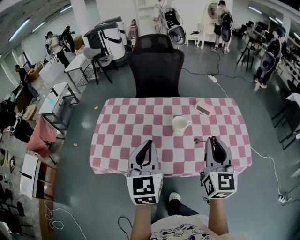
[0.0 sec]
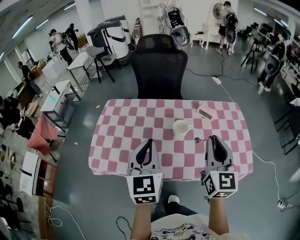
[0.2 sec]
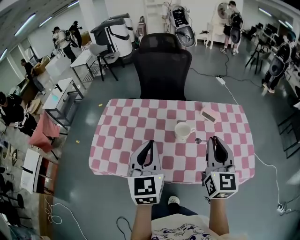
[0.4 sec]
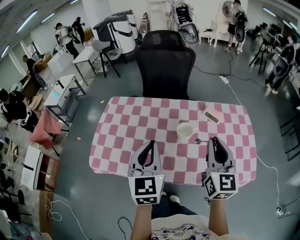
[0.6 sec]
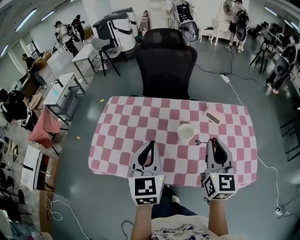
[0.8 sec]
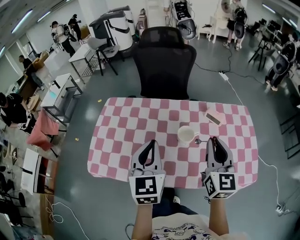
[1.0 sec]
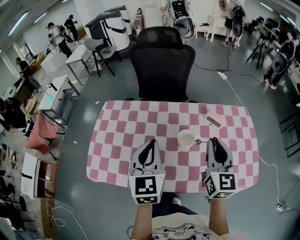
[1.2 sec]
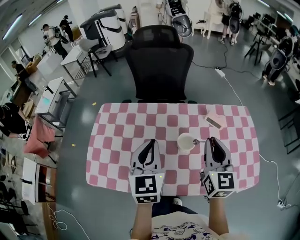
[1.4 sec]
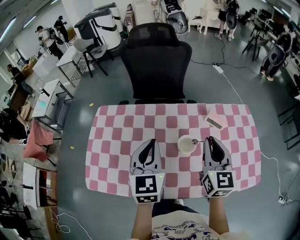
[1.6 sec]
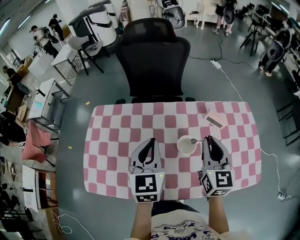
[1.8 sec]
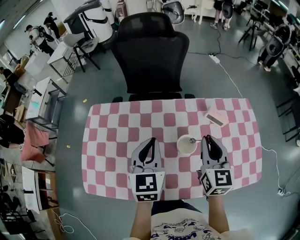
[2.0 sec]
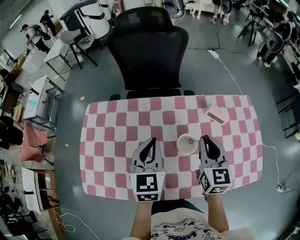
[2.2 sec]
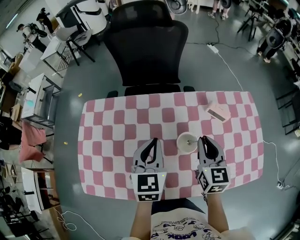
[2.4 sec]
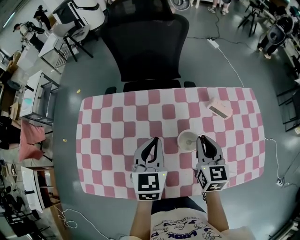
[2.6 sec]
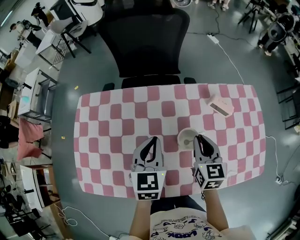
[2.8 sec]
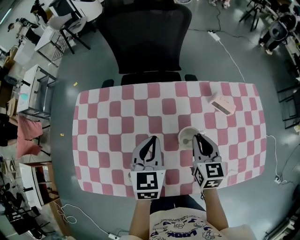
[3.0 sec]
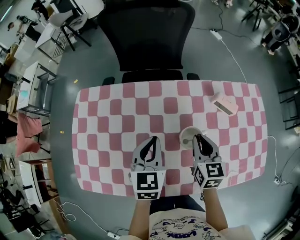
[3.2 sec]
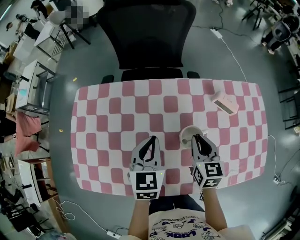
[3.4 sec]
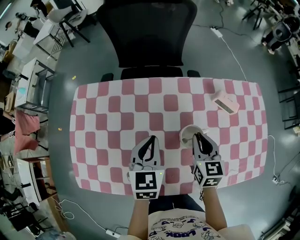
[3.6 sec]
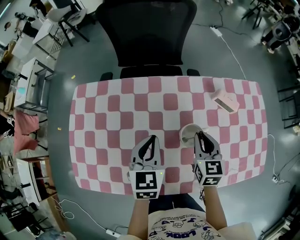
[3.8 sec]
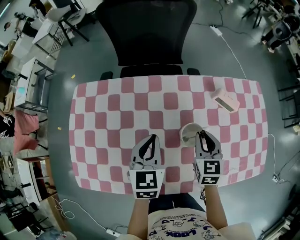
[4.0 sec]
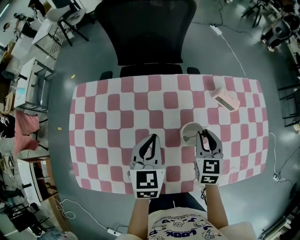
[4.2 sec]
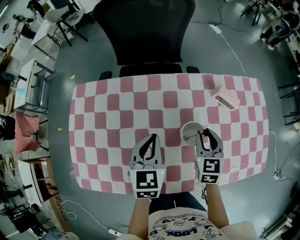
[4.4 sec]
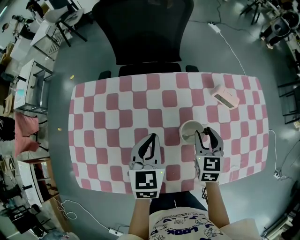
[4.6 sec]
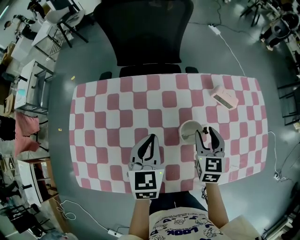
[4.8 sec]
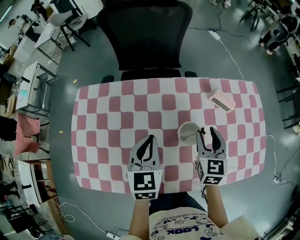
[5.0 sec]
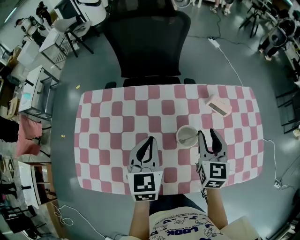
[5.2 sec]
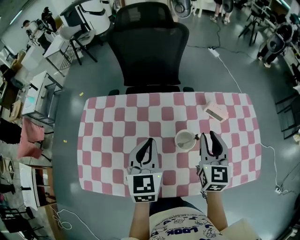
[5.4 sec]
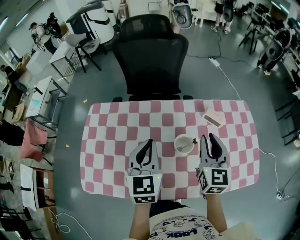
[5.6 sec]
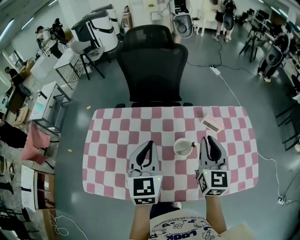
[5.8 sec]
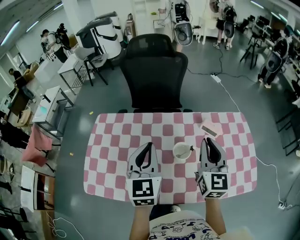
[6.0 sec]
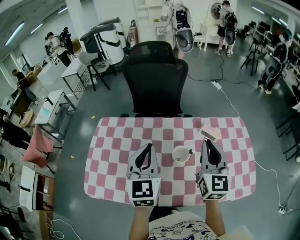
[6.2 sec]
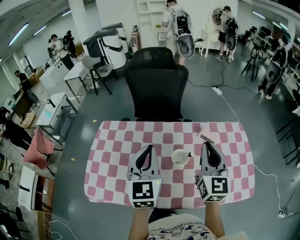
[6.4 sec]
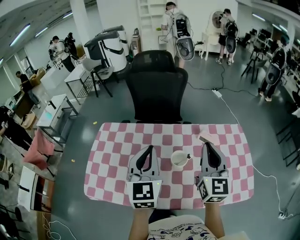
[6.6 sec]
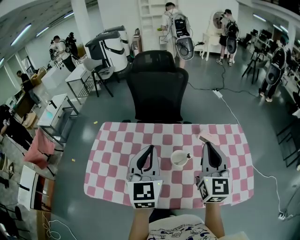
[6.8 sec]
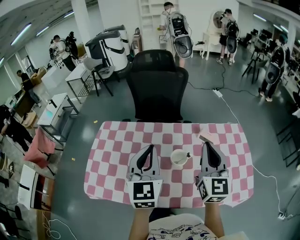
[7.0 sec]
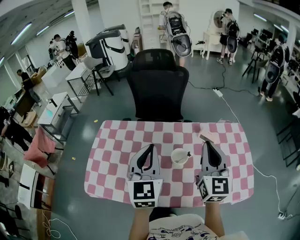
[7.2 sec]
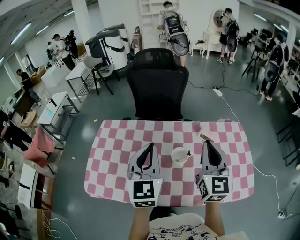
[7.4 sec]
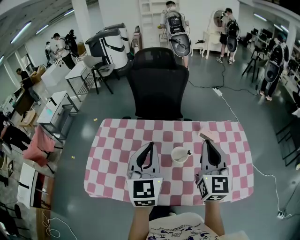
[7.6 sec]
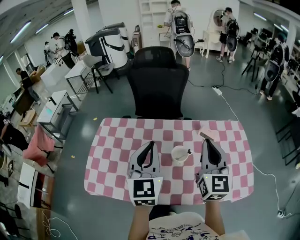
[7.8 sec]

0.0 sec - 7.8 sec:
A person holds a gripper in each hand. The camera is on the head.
0.0 sec - 1.6 sec: The grippers both shift forward by some 20 cm.
1.6 sec - 3.2 sec: The right gripper is displaced downward by roughly 20 cm, and turns by about 20 degrees, while the left gripper goes some 15 cm downward and forward.
3.2 sec - 4.6 sec: The right gripper opens.
4.6 sec - 6.2 sec: Both grippers move upward, approximately 25 cm. The left gripper swivels about 30 degrees. Meanwhile the right gripper angles its fingers upward, by about 30 degrees, and closes up.
6.2 sec - 7.8 sec: The grippers move only a little.

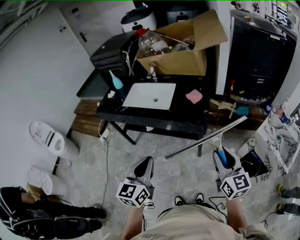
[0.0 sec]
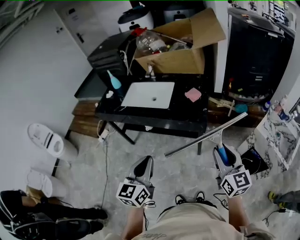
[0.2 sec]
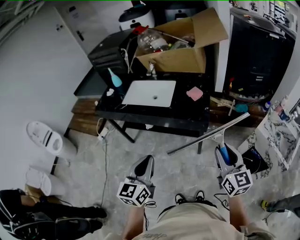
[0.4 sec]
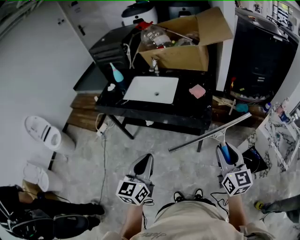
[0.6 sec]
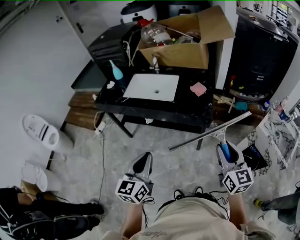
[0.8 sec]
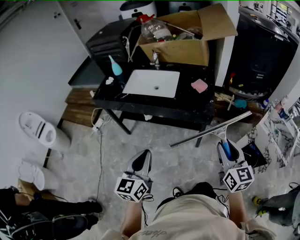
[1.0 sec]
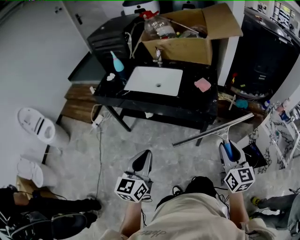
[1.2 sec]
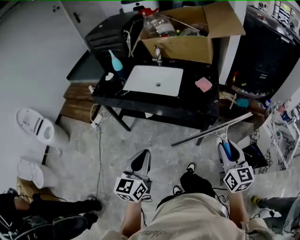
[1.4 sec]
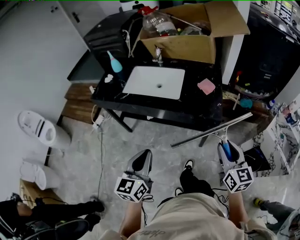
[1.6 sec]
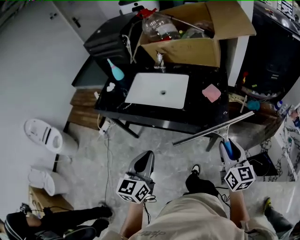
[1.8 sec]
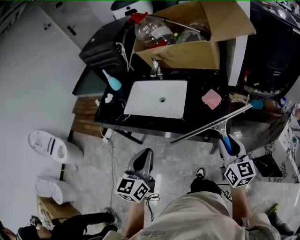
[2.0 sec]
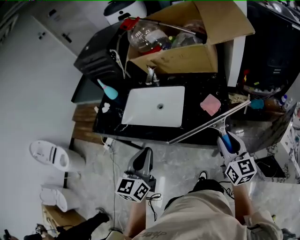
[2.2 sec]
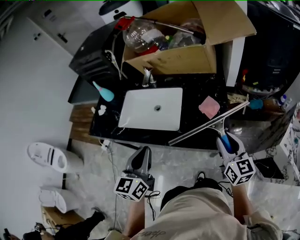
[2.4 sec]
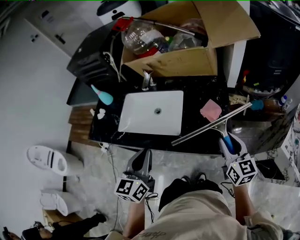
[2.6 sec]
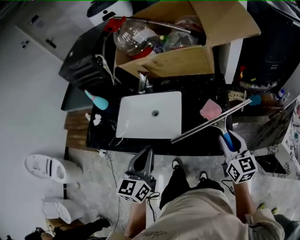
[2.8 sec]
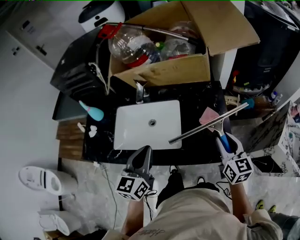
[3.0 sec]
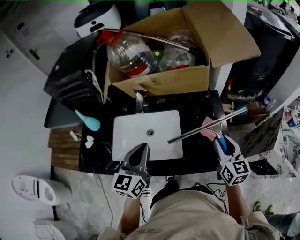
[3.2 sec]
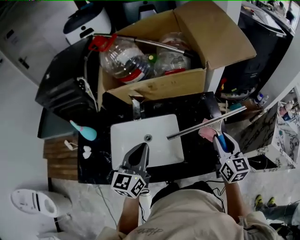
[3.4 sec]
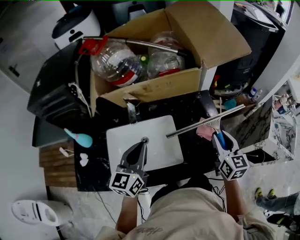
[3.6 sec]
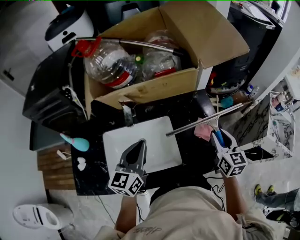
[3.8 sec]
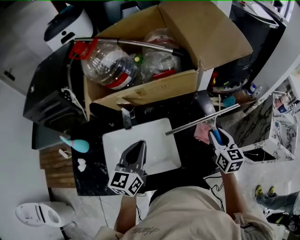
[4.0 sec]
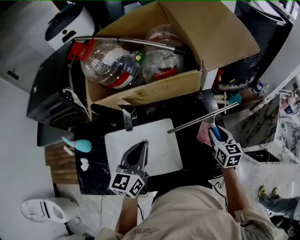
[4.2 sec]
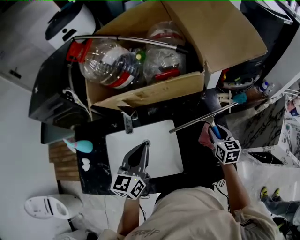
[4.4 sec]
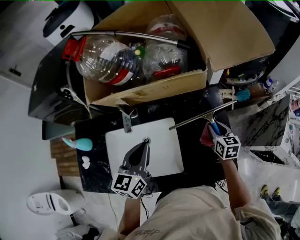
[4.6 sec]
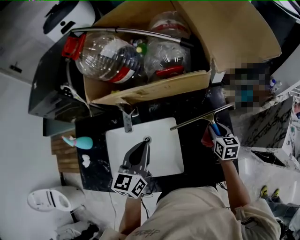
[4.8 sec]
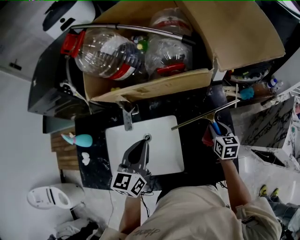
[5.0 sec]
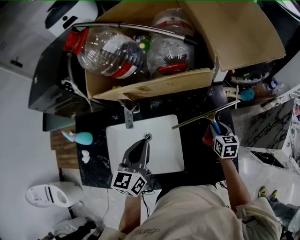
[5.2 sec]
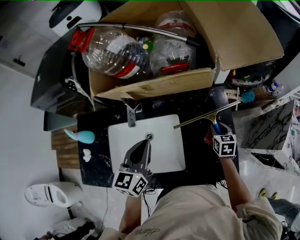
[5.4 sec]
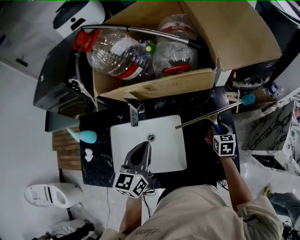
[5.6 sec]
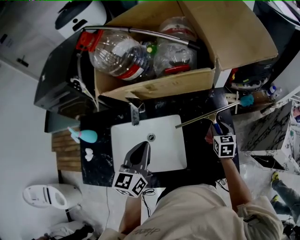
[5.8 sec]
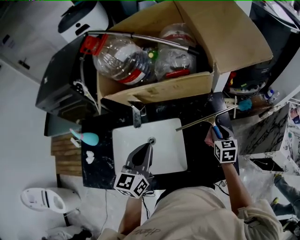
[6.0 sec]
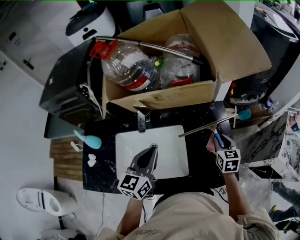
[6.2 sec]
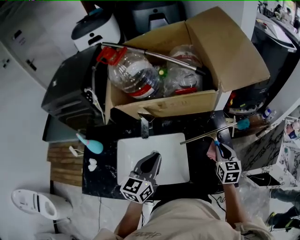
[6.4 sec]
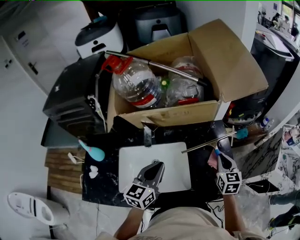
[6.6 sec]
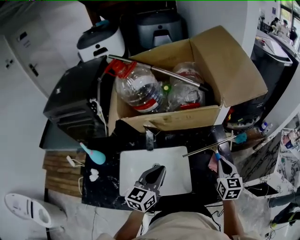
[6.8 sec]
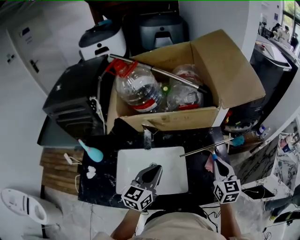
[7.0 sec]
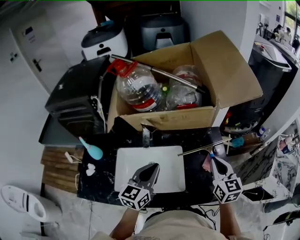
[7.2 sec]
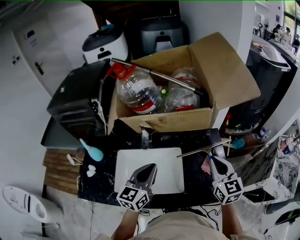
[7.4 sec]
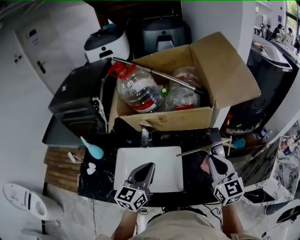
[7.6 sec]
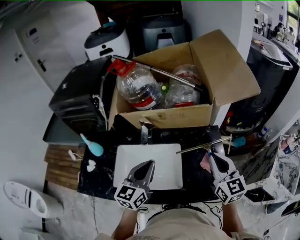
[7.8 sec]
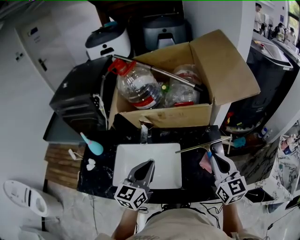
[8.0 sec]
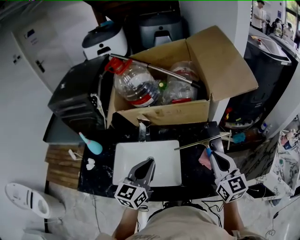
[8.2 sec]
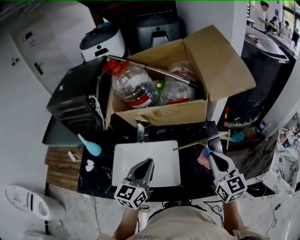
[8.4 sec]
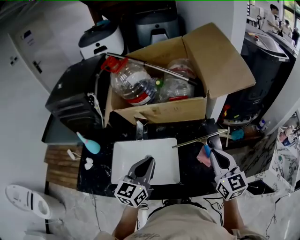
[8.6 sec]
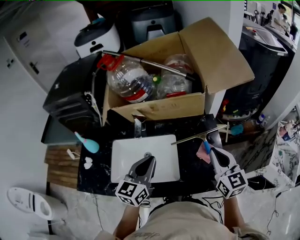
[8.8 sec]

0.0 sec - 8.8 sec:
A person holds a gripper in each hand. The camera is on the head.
0.0 sec - 1.4 sec: Both grippers move to the left, approximately 10 cm.
1.4 sec - 3.0 sec: Both grippers move forward, some 35 cm.
3.0 sec - 4.4 sec: The left gripper shifts approximately 15 cm forward. Meanwhile the right gripper heads forward and downward, covering approximately 20 cm.
5.8 sec - 7.4 sec: The right gripper moves upward and backward, roughly 25 cm, changes its angle by roughly 30 degrees, and closes.
7.4 sec - 8.8 sec: There are only small adjustments of the grippers.

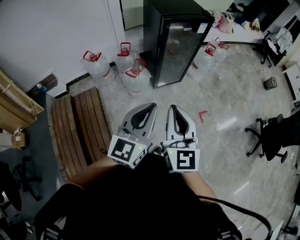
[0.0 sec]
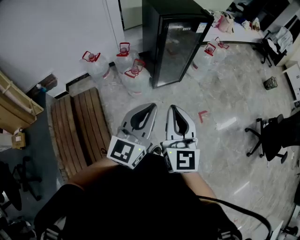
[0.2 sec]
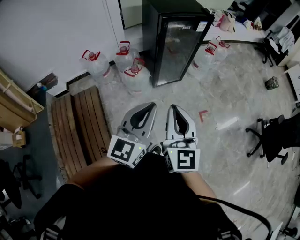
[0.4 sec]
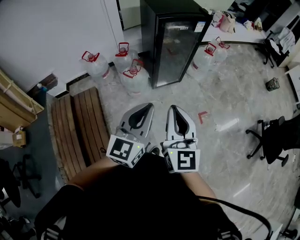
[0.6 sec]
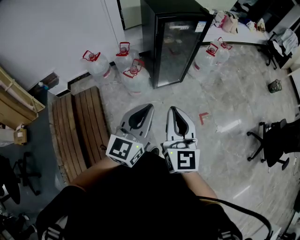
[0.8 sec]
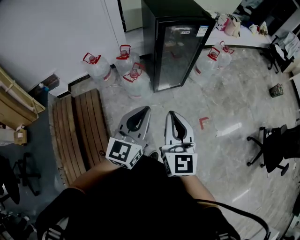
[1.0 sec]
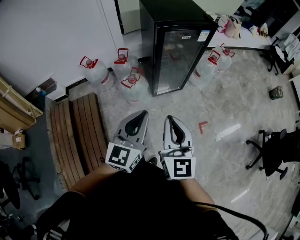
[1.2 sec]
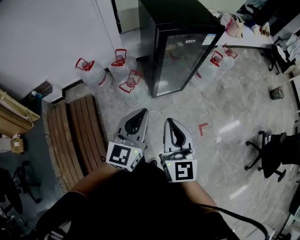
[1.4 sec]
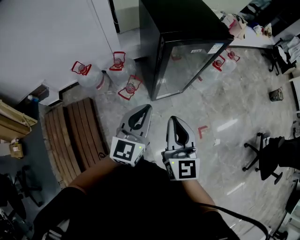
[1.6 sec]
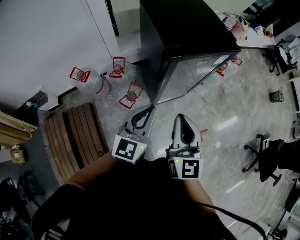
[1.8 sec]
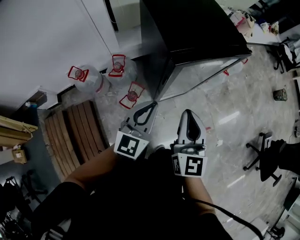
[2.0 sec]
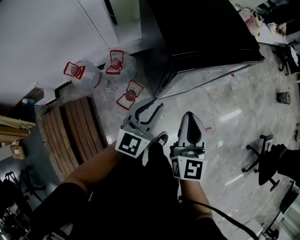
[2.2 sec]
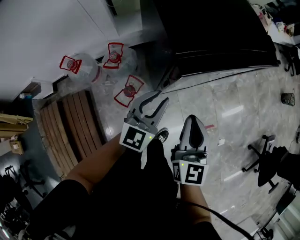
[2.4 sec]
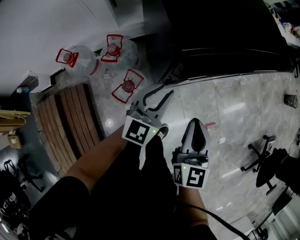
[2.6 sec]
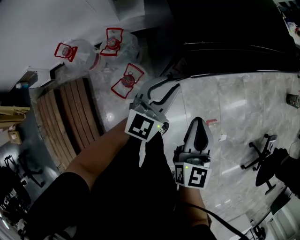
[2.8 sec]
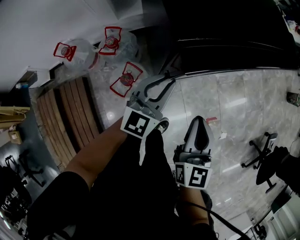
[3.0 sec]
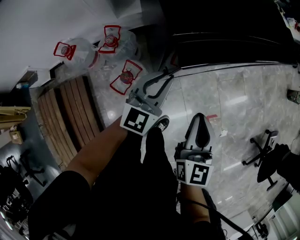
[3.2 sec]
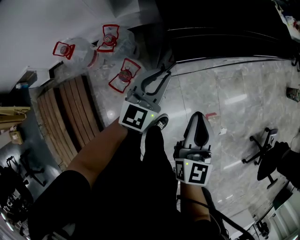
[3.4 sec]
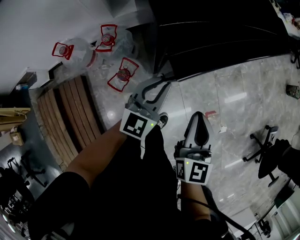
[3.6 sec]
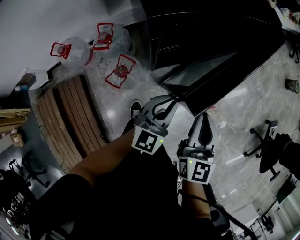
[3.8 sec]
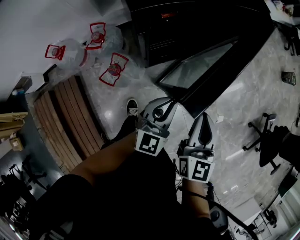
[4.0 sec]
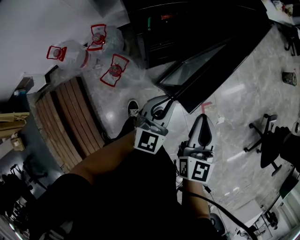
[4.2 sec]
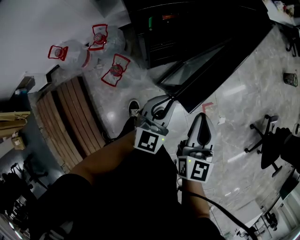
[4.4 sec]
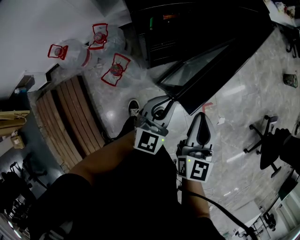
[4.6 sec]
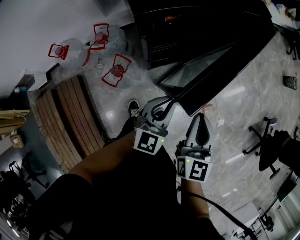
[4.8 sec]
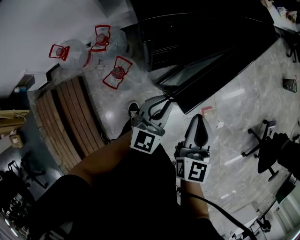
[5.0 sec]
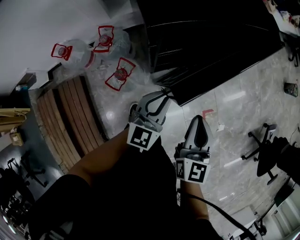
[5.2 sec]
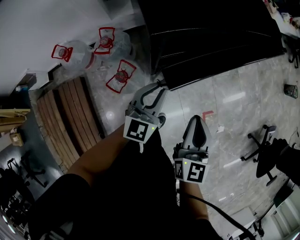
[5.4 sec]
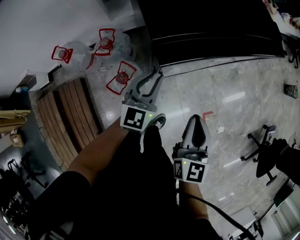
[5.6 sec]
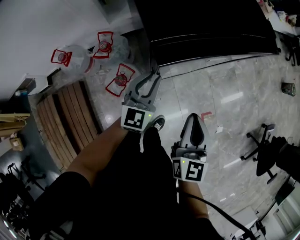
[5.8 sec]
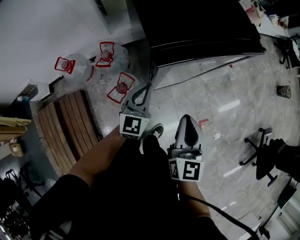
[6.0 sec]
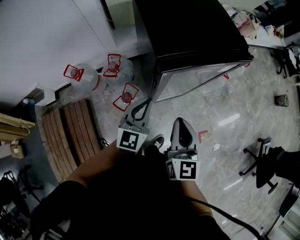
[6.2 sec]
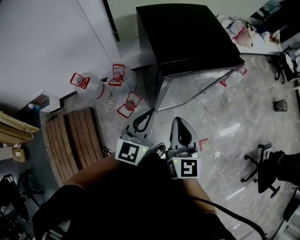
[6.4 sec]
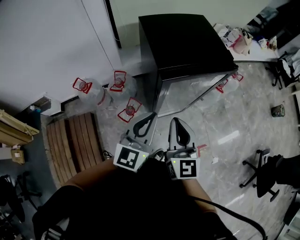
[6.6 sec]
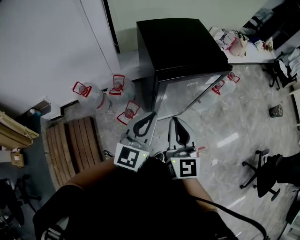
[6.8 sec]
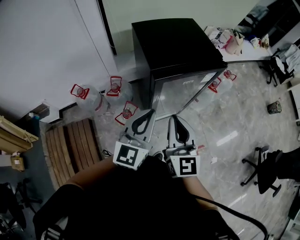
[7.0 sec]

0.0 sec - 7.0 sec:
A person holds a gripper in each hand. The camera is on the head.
0.0 sec - 1.4 sec: The grippers both shift forward by roughly 20 cm.
1.4 sec - 2.8 sec: Both grippers move forward and downward, some 40 cm. The left gripper opens up.
2.8 sec - 4.2 sec: The grippers both shift to the right and backward by approximately 15 cm.
4.2 sec - 5.6 sec: The left gripper heads to the left and forward, covering about 15 cm. The right gripper moves to the left, approximately 10 cm.
5.6 sec - 7.0 sec: The right gripper is displaced upward by approximately 20 cm, and rotates some 20 degrees, while the left gripper goes some 30 cm upward and backward.
